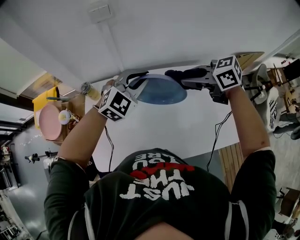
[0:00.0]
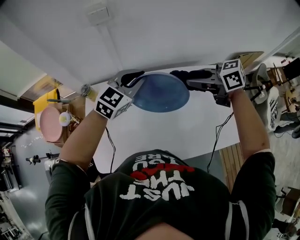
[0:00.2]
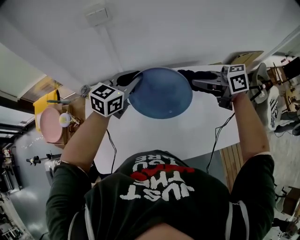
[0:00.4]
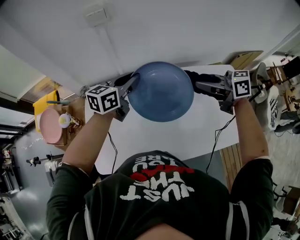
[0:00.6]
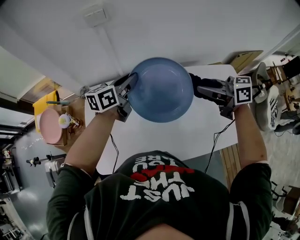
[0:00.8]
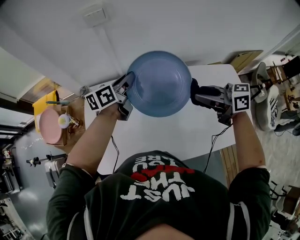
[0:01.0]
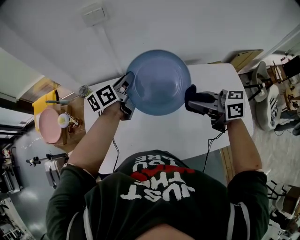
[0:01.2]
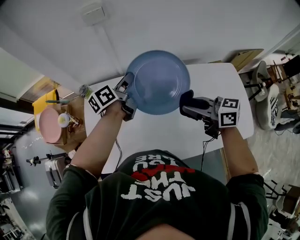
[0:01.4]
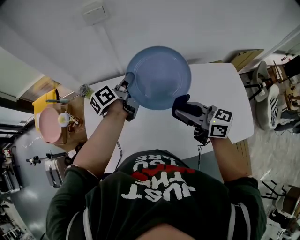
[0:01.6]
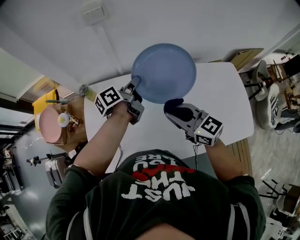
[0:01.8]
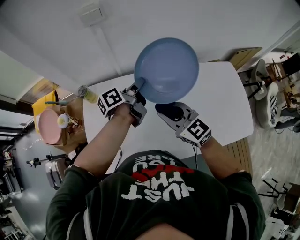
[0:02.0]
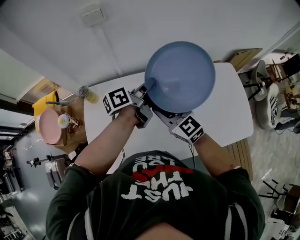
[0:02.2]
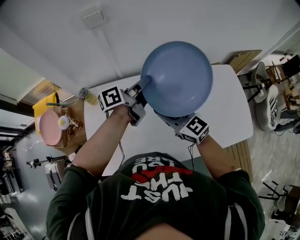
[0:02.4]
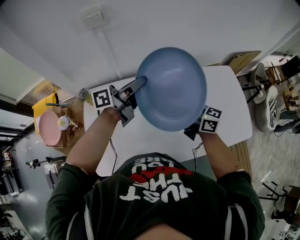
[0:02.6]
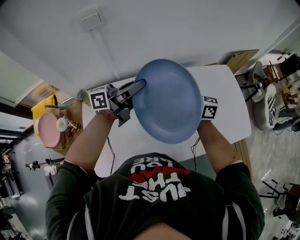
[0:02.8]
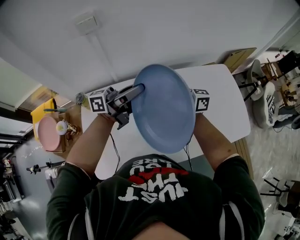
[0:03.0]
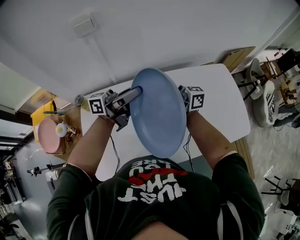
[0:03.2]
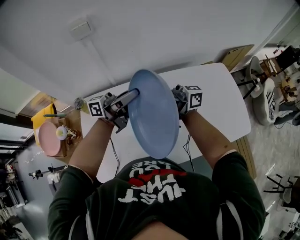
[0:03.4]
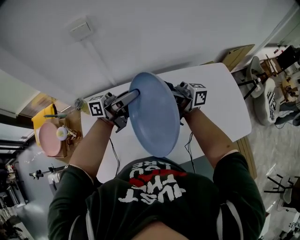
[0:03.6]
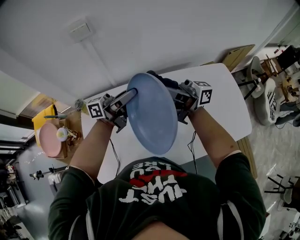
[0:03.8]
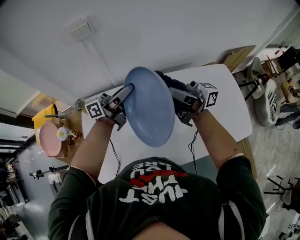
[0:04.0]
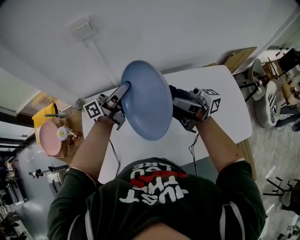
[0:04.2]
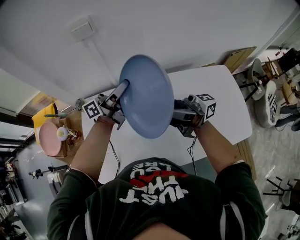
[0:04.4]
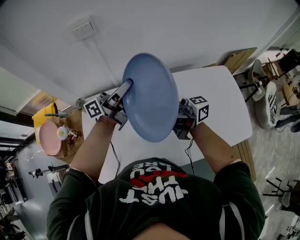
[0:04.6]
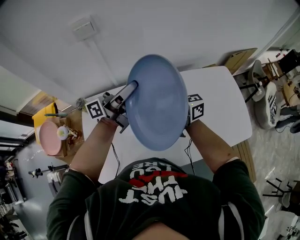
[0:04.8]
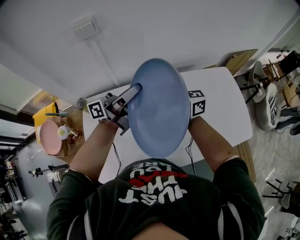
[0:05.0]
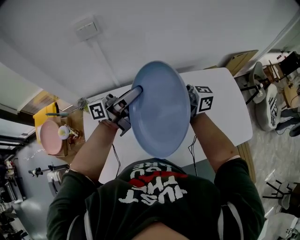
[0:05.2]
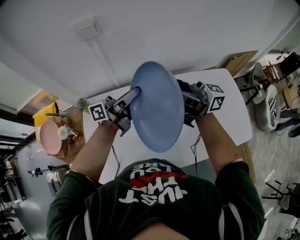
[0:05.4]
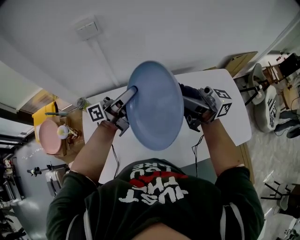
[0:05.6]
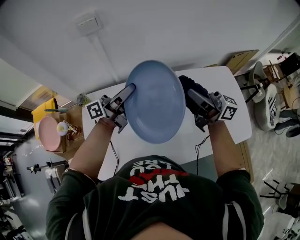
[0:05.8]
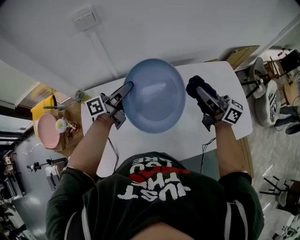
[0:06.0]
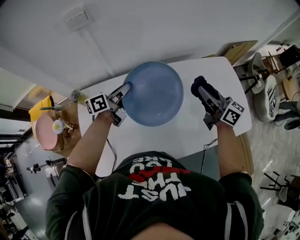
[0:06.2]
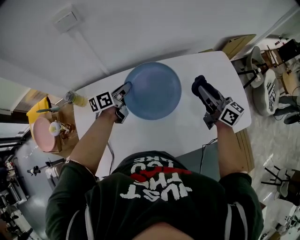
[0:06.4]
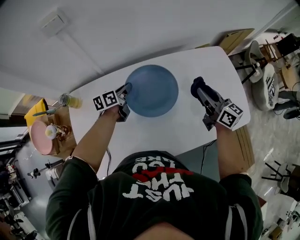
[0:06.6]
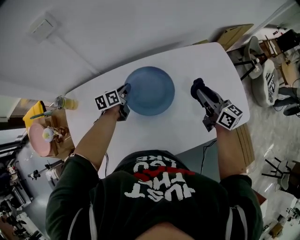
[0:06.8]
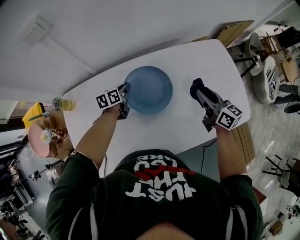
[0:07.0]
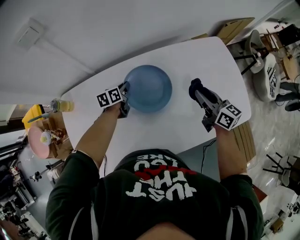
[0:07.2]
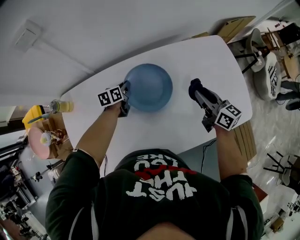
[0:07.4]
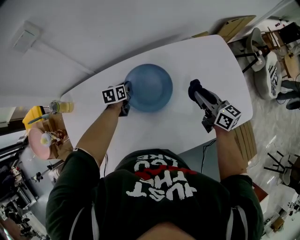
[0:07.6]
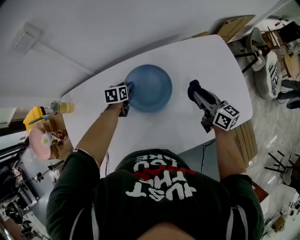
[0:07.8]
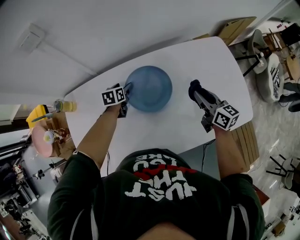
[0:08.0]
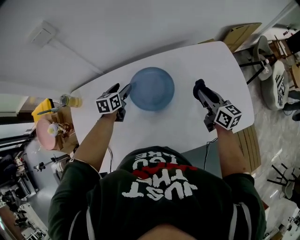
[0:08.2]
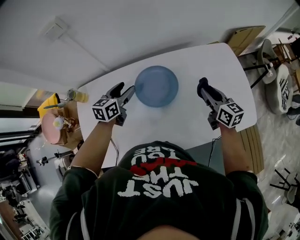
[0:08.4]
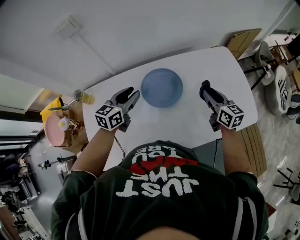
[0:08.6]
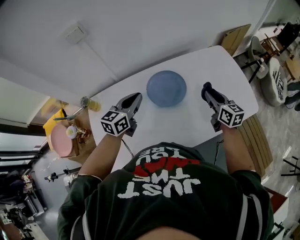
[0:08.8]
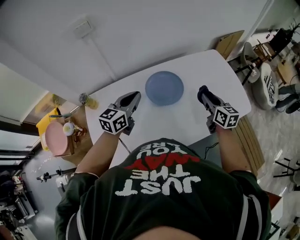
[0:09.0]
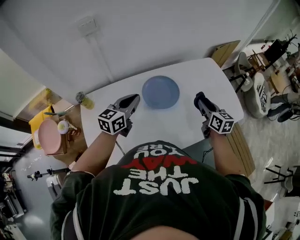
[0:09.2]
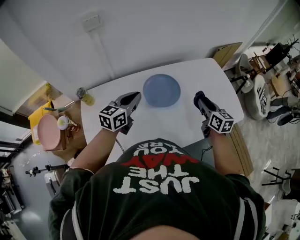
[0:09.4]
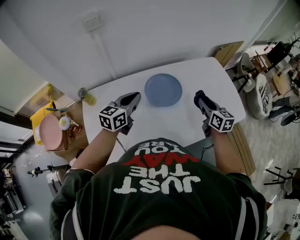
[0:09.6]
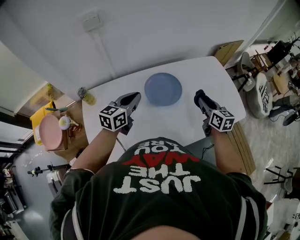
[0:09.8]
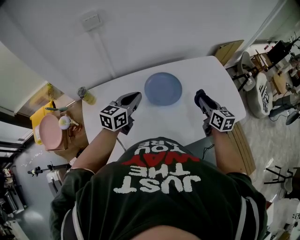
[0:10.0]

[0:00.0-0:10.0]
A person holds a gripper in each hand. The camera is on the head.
0:00.0 to 0:01.4: The right gripper moves some 10 cm, and swivels about 20 degrees, while the left gripper shifts by roughly 10 cm, and rotates around the line of its fingers by roughly 90 degrees, counterclockwise from behind.
0:01.4 to 0:02.8: The right gripper changes its angle by approximately 30 degrees; the left gripper moves some 15 cm, and turns by roughly 50 degrees.
0:02.8 to 0:04.2: The right gripper goes some 10 cm upward, and turns by roughly 30 degrees; the left gripper moves about 5 cm.
0:04.2 to 0:05.8: The right gripper swings up and down, about 10 cm each way, with 2 reversals, and rotates roughly 30 degrees.
0:05.8 to 0:07.2: The left gripper travels downward by some 30 cm, and angles its fingers downward, by some 60 degrees. Meanwhile the right gripper heads downward and to the right, covering about 25 cm, and tilts its fingers about 40 degrees downward.
0:07.2 to 0:08.6: The left gripper goes roughly 25 cm upward and backward, changes its angle by about 30 degrees, and opens up.
0:08.6 to 0:10.0: The grippers both shift backward by approximately 5 cm. The left gripper closes up.

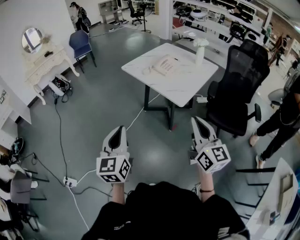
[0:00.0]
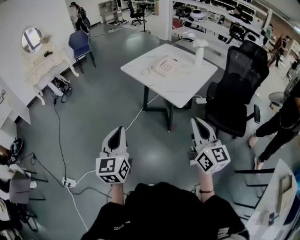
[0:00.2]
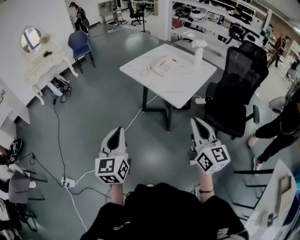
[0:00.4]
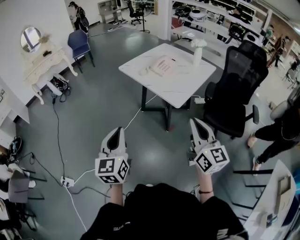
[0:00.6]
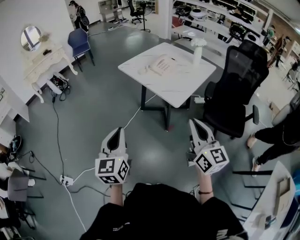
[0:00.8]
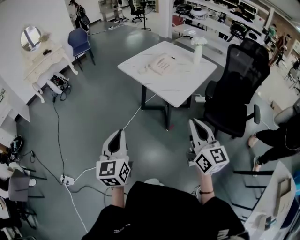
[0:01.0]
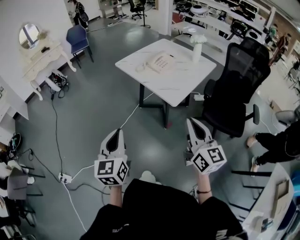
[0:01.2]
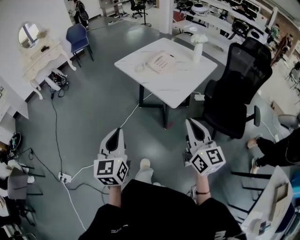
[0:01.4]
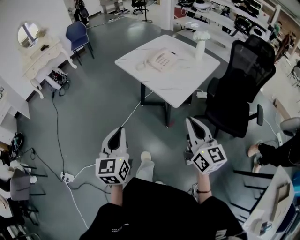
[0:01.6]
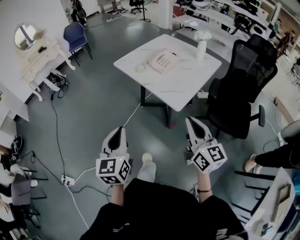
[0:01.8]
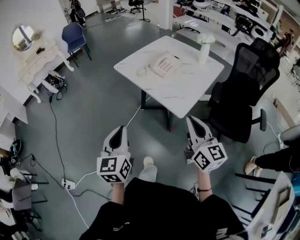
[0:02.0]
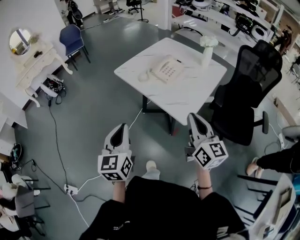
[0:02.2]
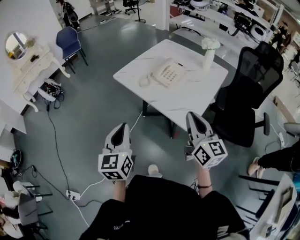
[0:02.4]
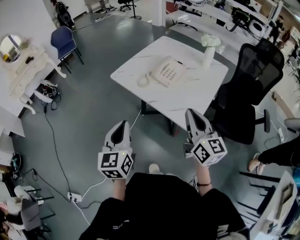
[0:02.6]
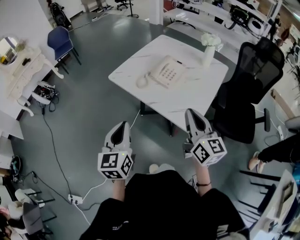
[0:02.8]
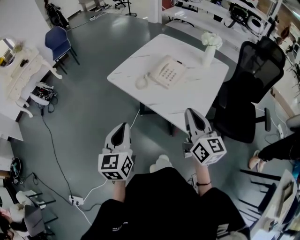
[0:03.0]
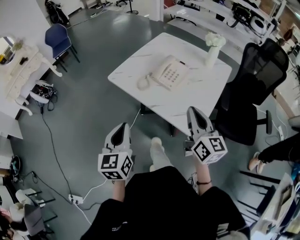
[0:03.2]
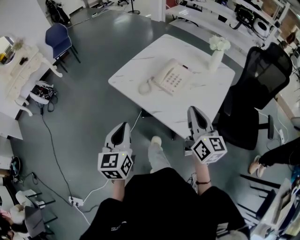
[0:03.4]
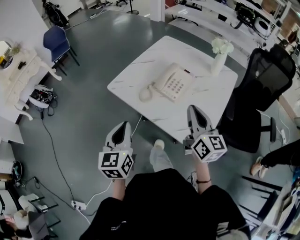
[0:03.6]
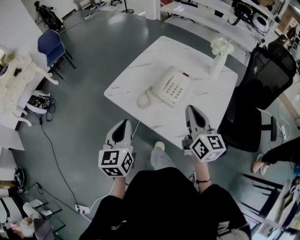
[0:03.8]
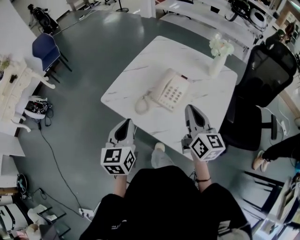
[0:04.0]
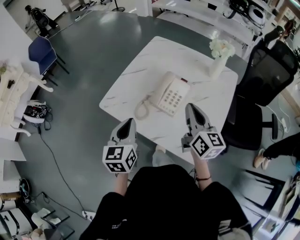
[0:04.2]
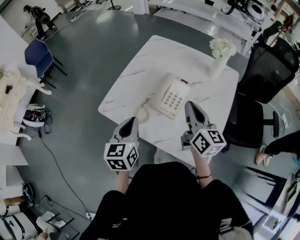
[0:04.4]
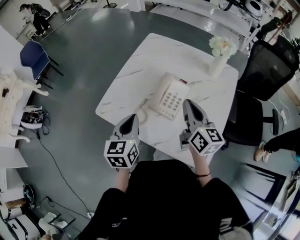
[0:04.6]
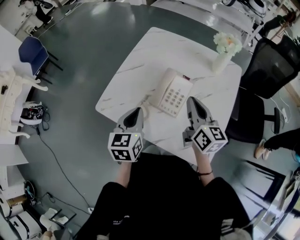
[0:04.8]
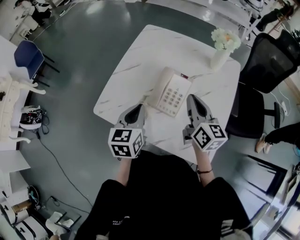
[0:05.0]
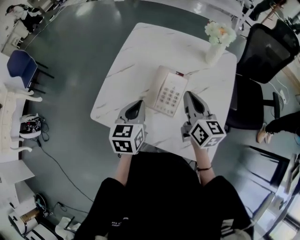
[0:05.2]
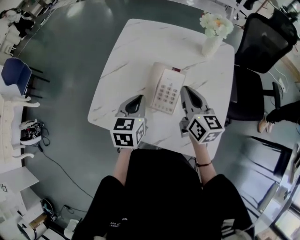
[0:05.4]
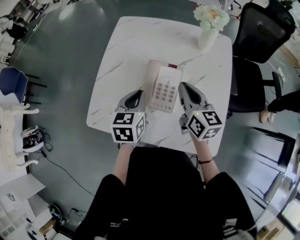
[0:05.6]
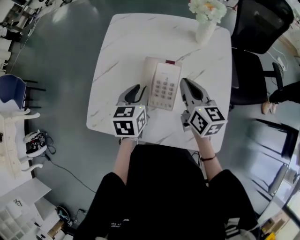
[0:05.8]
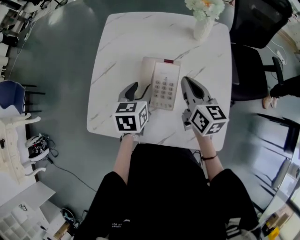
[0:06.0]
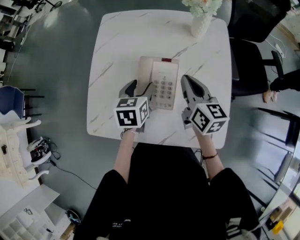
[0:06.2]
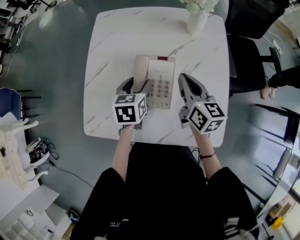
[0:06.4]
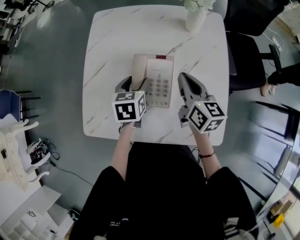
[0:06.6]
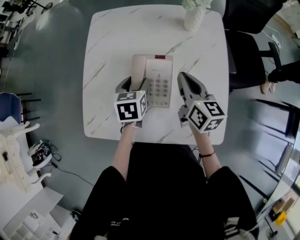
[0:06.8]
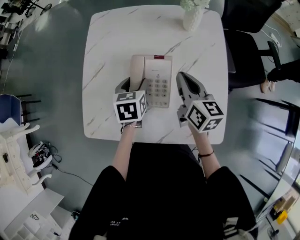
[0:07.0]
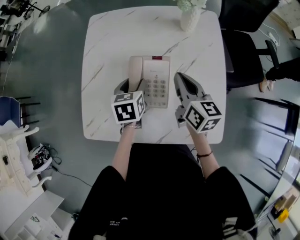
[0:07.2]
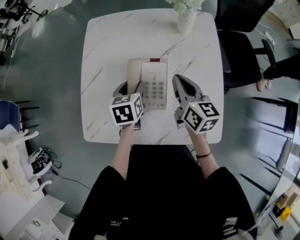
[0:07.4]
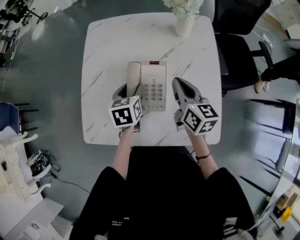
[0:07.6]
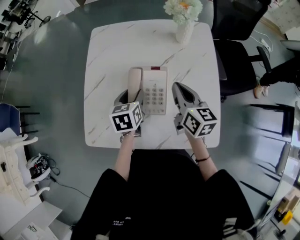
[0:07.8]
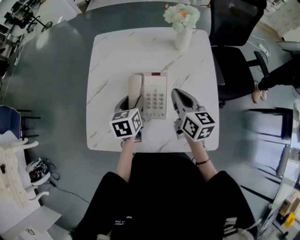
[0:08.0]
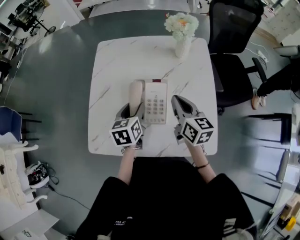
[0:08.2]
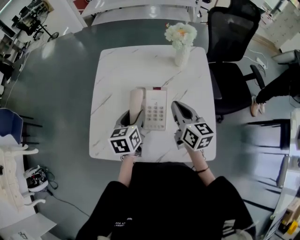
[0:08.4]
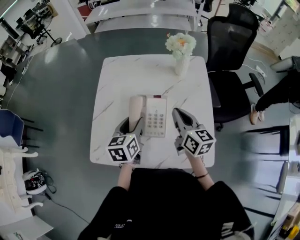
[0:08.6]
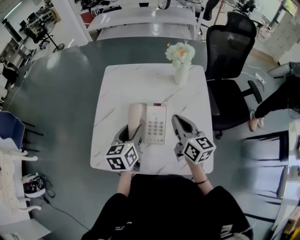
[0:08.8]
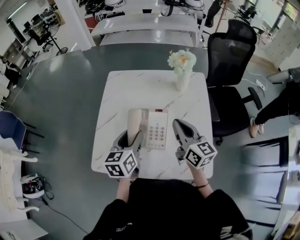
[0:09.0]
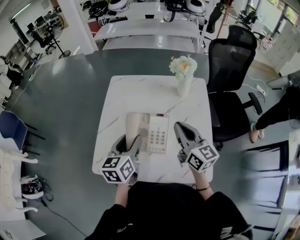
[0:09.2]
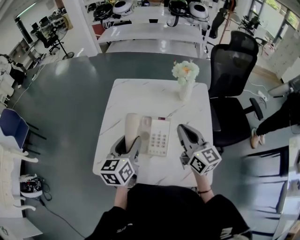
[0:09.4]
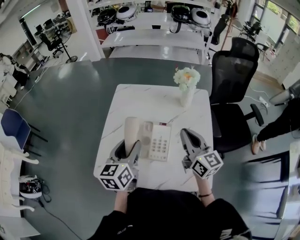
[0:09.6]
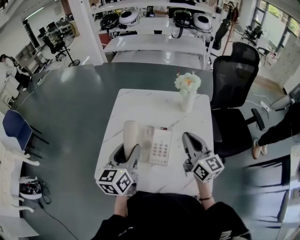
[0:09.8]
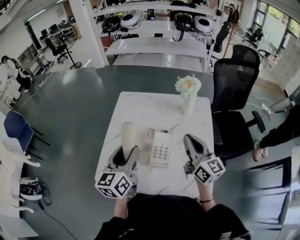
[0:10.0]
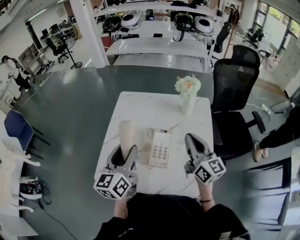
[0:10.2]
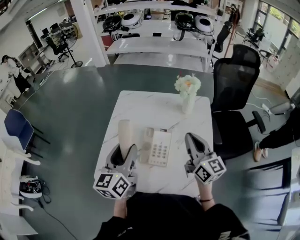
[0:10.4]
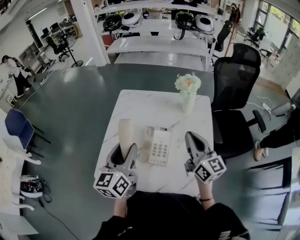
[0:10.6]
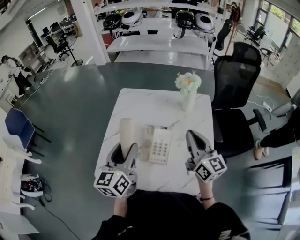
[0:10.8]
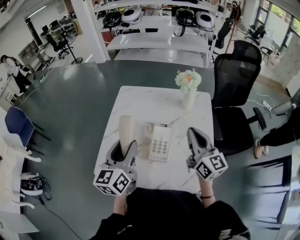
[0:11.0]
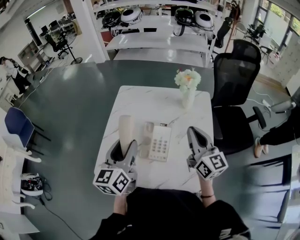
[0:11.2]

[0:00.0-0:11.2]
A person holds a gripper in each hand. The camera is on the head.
0:00.0 to 0:01.6: The left gripper travels to the right and forward by about 10 cm, while the right gripper heads forward, covering roughly 5 cm.
0:01.6 to 0:03.2: Both grippers travel together forward, roughly 30 cm.
0:03.2 to 0:04.8: Both grippers travel together forward, approximately 30 cm. The left gripper turns by about 20 degrees.
0:04.8 to 0:06.4: The left gripper is displaced forward, downward and to the right by some 20 cm, turns by some 30 degrees, and opens, while the right gripper shifts roughly 10 cm downward and forward.
0:06.4 to 0:08.0: There are only small adjustments of the grippers.
0:08.0 to 0:09.6: Both grippers move upward, roughly 15 cm. The right gripper swivels some 20 degrees. The left gripper turns by about 20 degrees.
0:09.6 to 0:11.2: The grippers make only small movements.

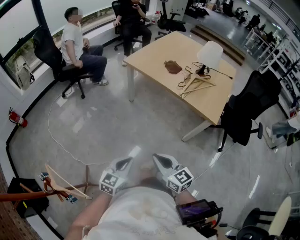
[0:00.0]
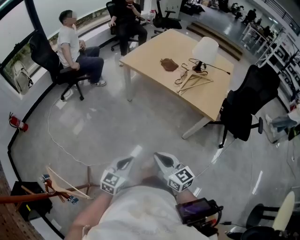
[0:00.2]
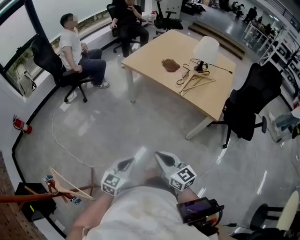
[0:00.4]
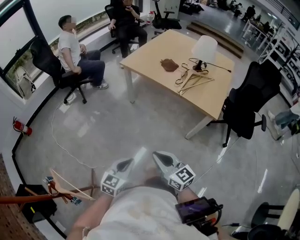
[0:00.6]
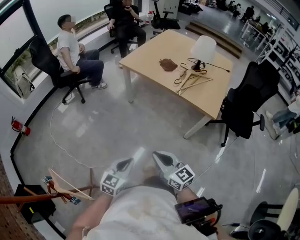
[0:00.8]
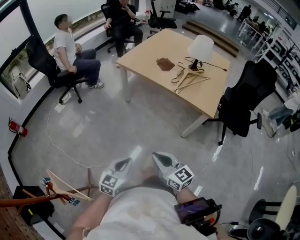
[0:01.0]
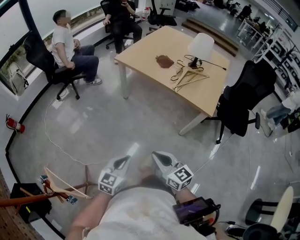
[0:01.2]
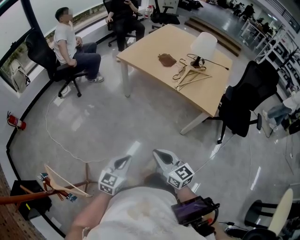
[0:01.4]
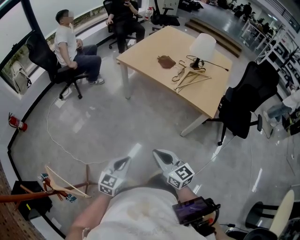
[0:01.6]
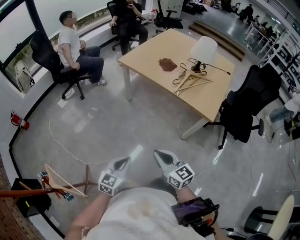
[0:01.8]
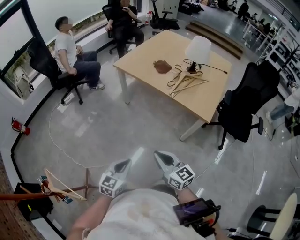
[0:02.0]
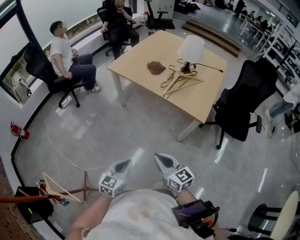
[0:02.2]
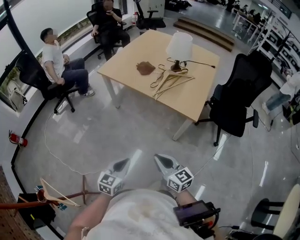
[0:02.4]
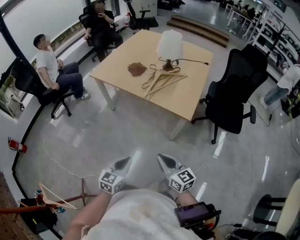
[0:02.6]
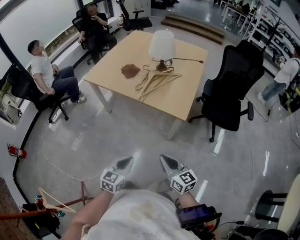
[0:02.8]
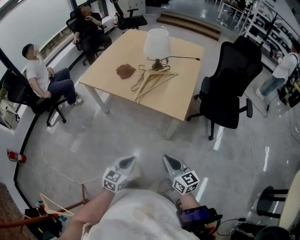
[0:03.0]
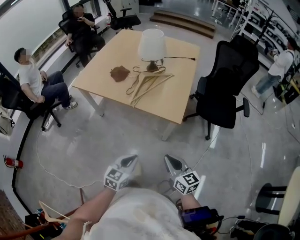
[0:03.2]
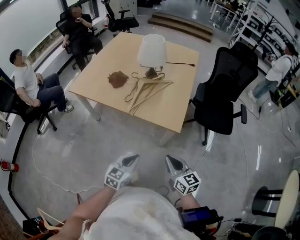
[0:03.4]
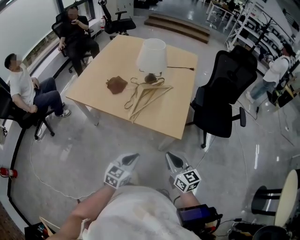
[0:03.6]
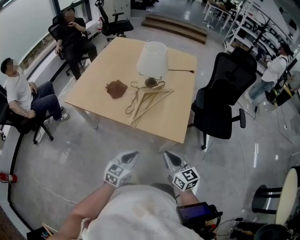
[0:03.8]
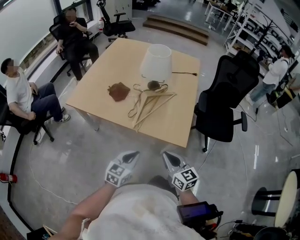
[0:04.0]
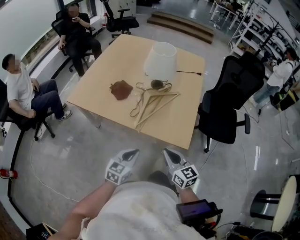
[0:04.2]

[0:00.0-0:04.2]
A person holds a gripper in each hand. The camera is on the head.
0:00.0 to 0:01.4: The grippers stay close to where they were, moving slightly.
0:01.4 to 0:02.8: The grippers both shift to the right by roughly 25 cm.
0:02.8 to 0:04.2: The grippers both shift forward by roughly 25 cm.
